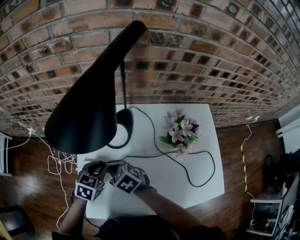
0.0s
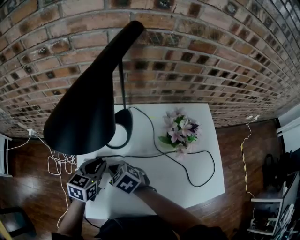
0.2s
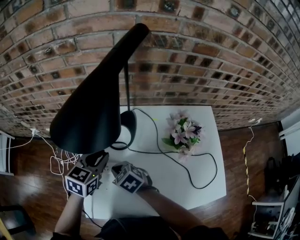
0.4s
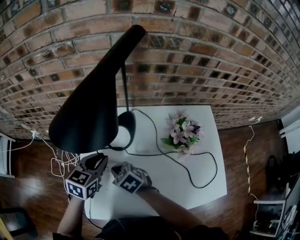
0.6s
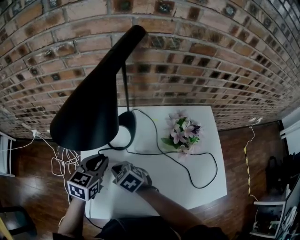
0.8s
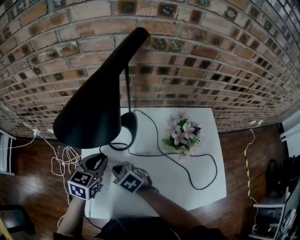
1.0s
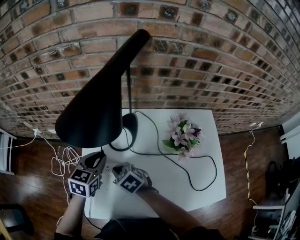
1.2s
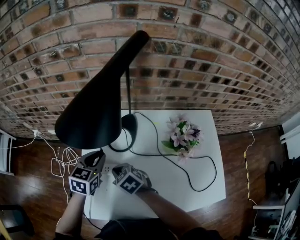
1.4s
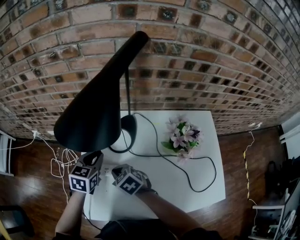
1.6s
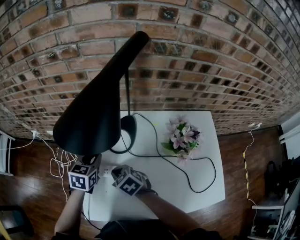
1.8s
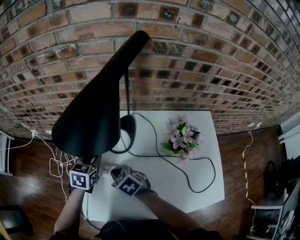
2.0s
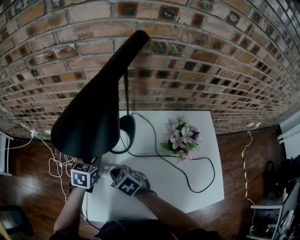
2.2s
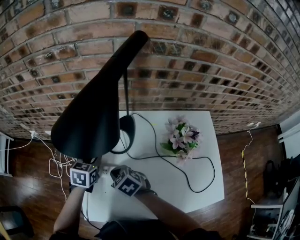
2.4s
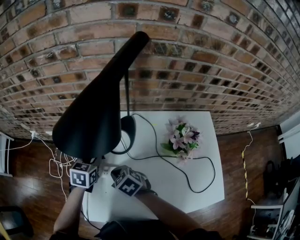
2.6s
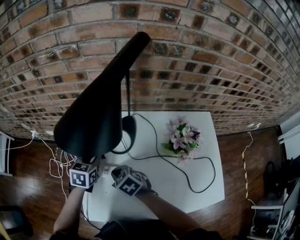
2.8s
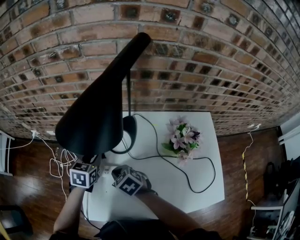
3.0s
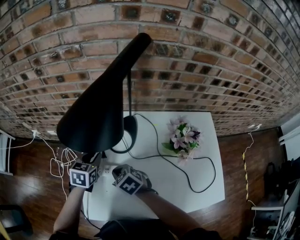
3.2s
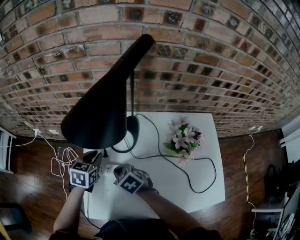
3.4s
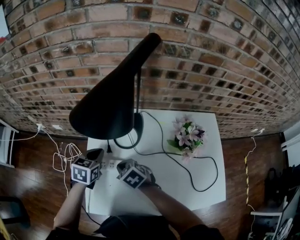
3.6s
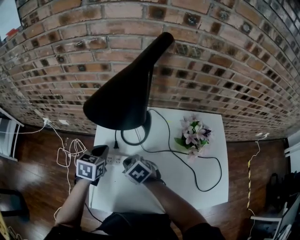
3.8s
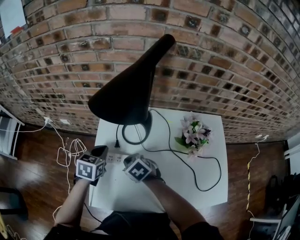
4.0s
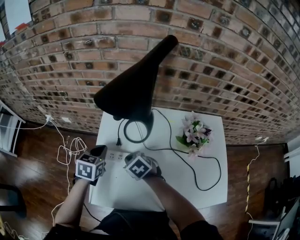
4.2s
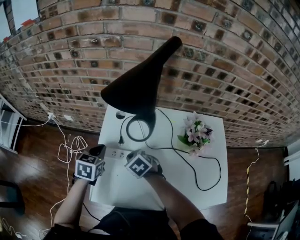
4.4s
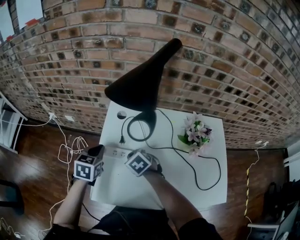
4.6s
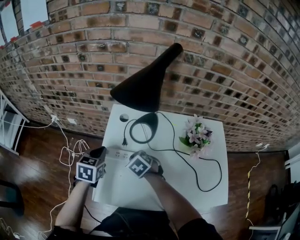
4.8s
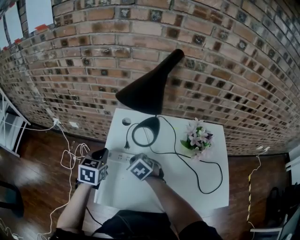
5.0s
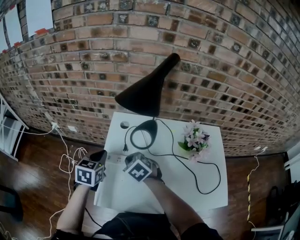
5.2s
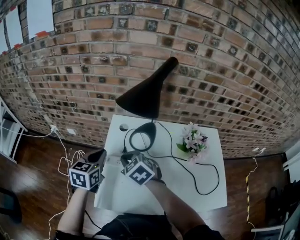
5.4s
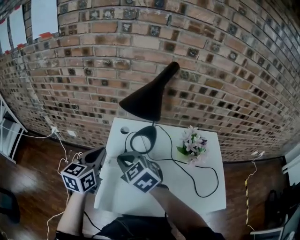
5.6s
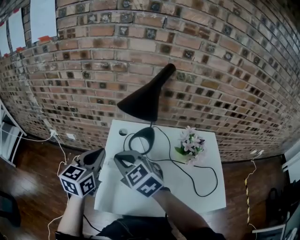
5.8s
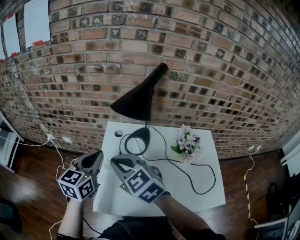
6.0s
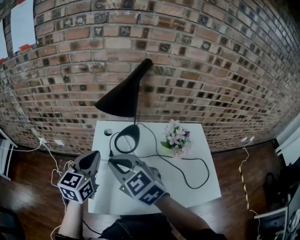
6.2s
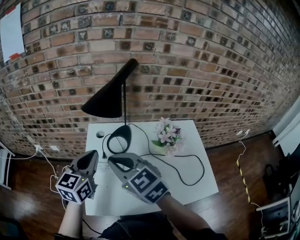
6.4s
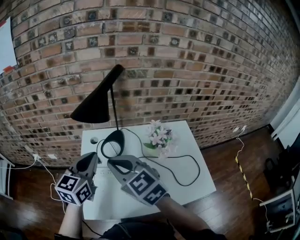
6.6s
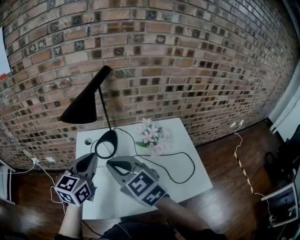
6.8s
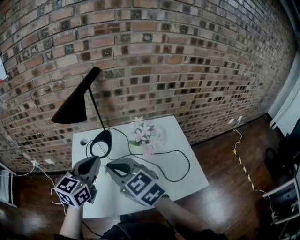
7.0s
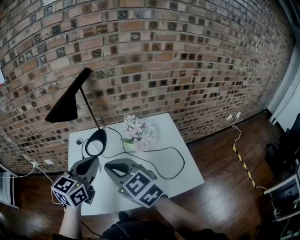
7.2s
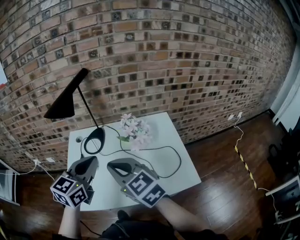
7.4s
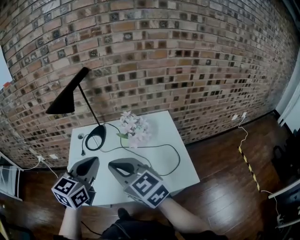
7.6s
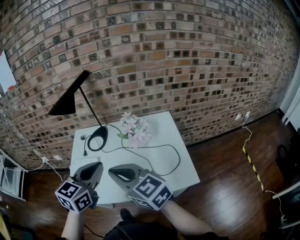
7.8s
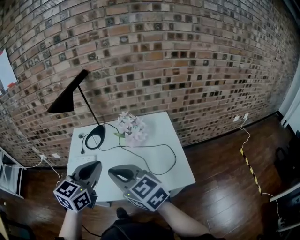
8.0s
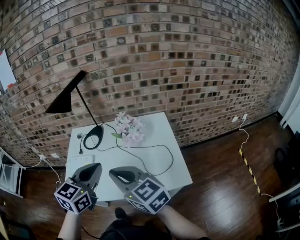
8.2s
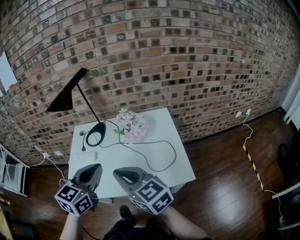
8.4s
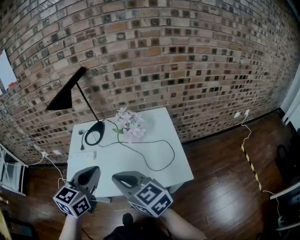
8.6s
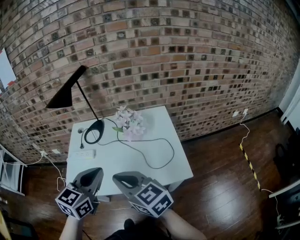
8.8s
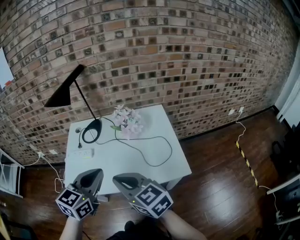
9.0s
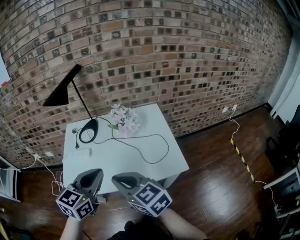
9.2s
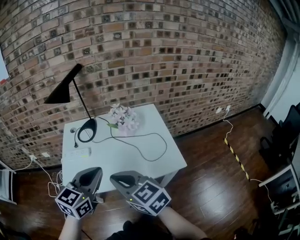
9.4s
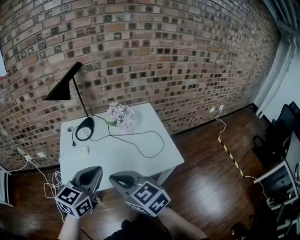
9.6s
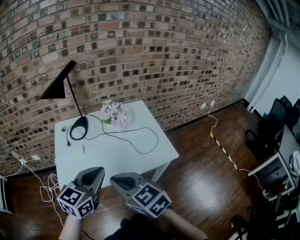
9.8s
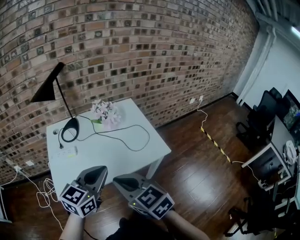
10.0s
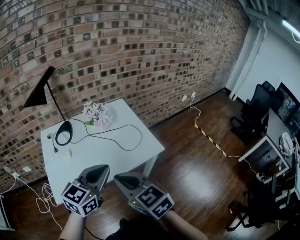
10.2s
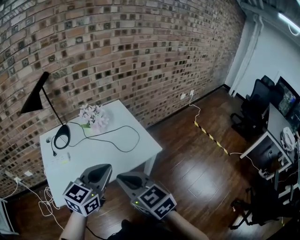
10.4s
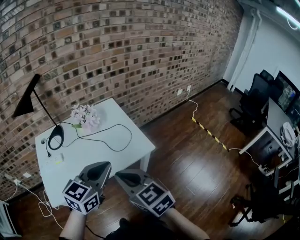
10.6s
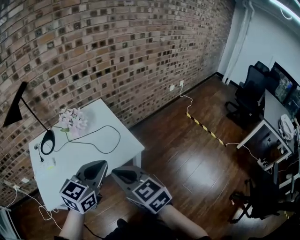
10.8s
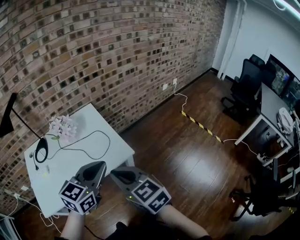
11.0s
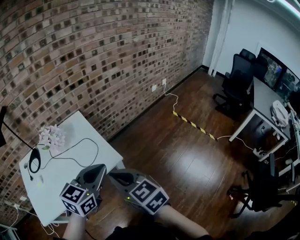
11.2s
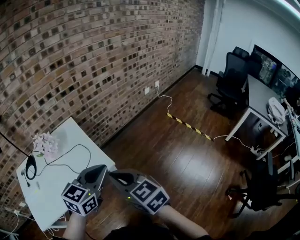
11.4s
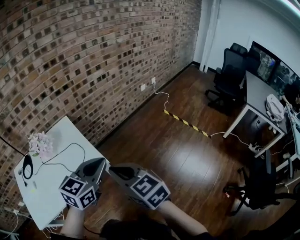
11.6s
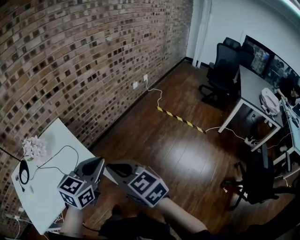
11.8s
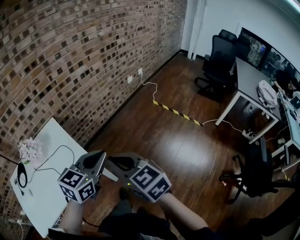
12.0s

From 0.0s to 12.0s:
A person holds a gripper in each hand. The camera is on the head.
From 0.0s to 1.6s: The left gripper travels forward by roughly 5 cm.
From 1.6s to 3.0s: The grippers make only small movements.
From 3.0s to 4.4s: The left gripper heads to the left, covering some 5 cm, and closes up.
From 4.4s to 6.0s: The grippers both shift upward by some 20 cm. The left gripper turns by approximately 30 degrees. The right gripper points its fingers about 30 degrees further upward.
From 6.0s to 7.6s: Both grippers move to the right and backward, roughly 30 cm. The right gripper swivels roughly 20 degrees.
From 7.6s to 9.0s: Both grippers travel together backward, roughly 10 cm.
From 9.0s to 10.4s: The right gripper shifts by some 10 cm, and swivels approximately 30 degrees; the left gripper shifts by approximately 10 cm, and swivels some 30 degrees.
From 10.4s to 12.0s: Both grippers move to the right, roughly 40 cm. The left gripper turns by about 20 degrees.

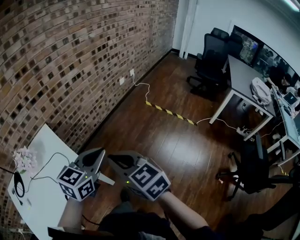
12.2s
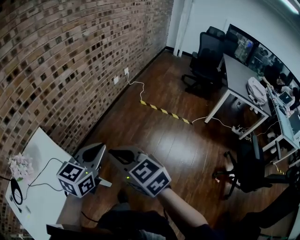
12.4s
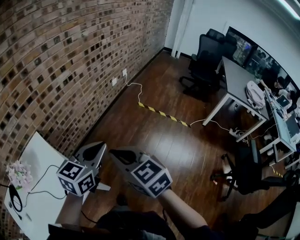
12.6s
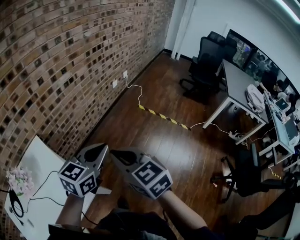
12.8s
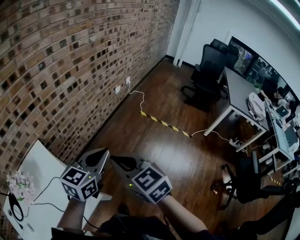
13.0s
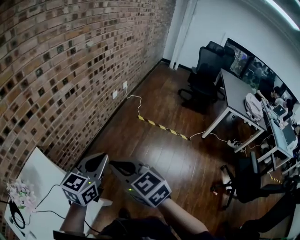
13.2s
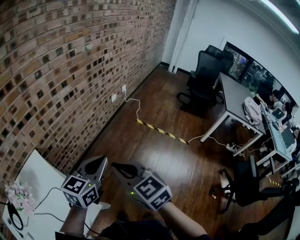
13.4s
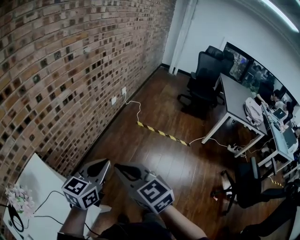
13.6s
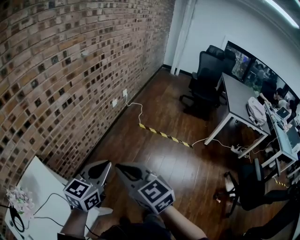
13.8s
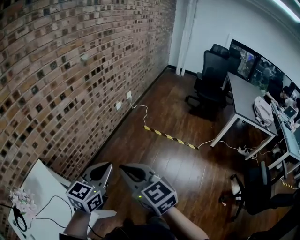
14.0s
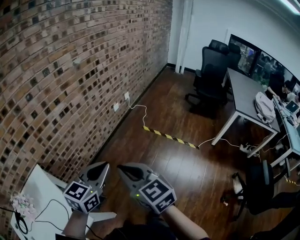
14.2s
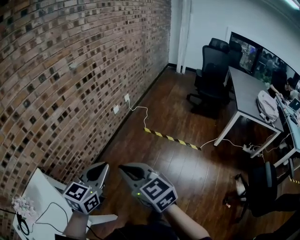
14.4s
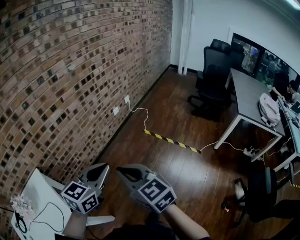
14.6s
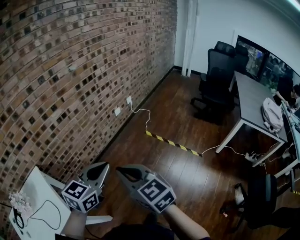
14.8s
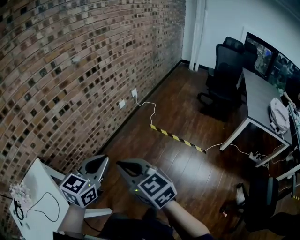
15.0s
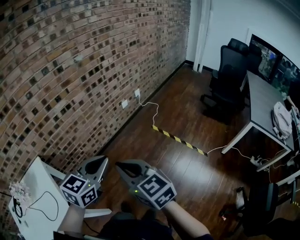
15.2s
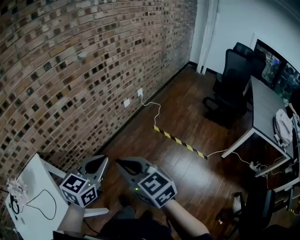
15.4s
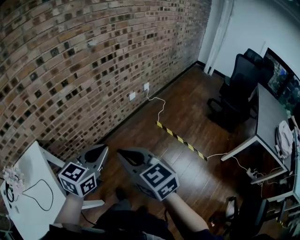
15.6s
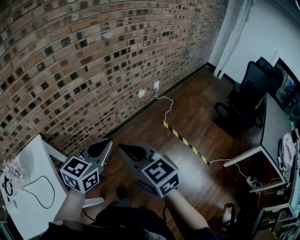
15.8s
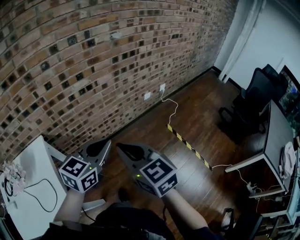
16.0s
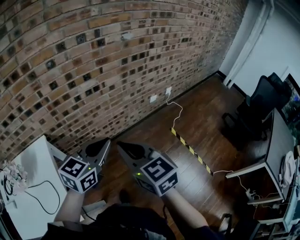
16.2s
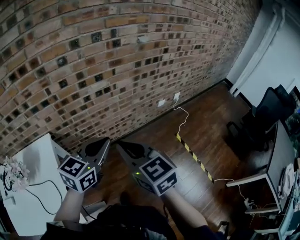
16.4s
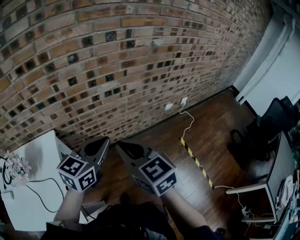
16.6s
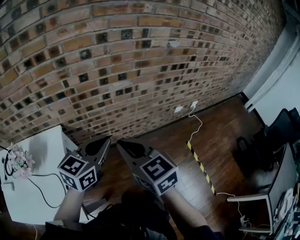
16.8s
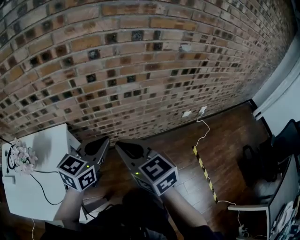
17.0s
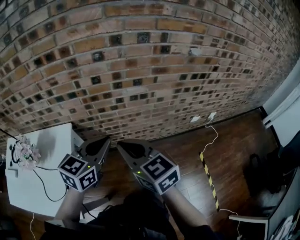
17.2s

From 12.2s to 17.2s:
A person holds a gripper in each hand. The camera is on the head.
From 12.2s to 13.8s: The grippers both shift forward by about 20 cm.
From 13.8s to 15.6s: The right gripper shifts some 20 cm to the right and forward, while the left gripper shifts about 15 cm forward and to the right.
From 15.6s to 17.2s: The right gripper shifts by roughly 35 cm, and changes its angle by roughly 30 degrees; the left gripper moves approximately 30 cm, and changes its angle by about 30 degrees.

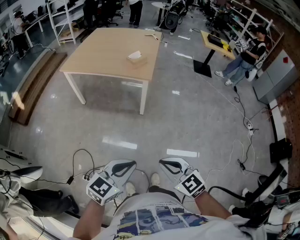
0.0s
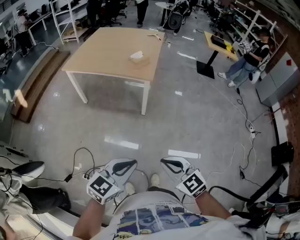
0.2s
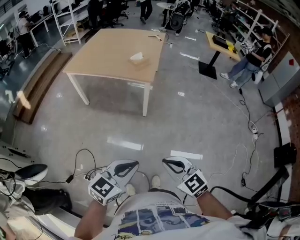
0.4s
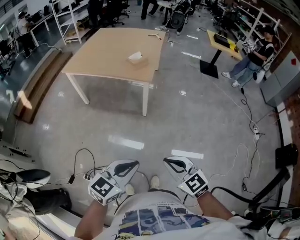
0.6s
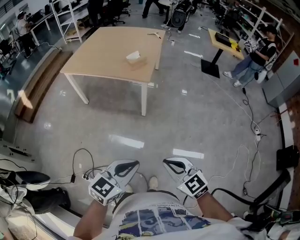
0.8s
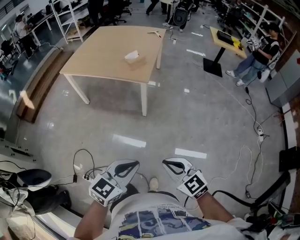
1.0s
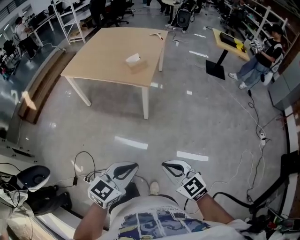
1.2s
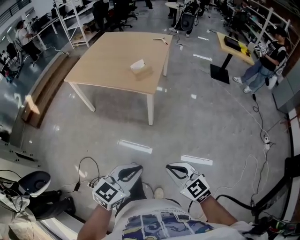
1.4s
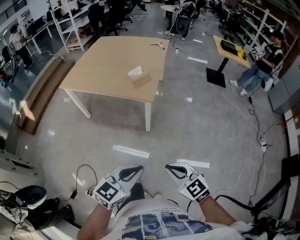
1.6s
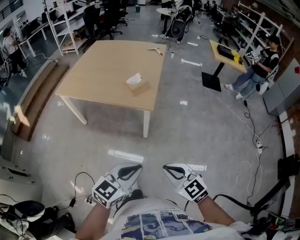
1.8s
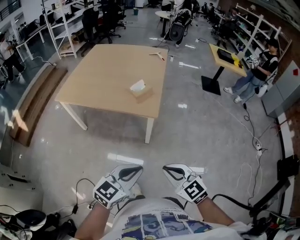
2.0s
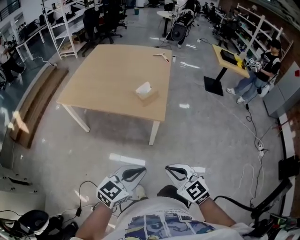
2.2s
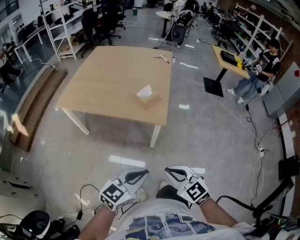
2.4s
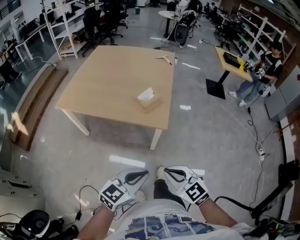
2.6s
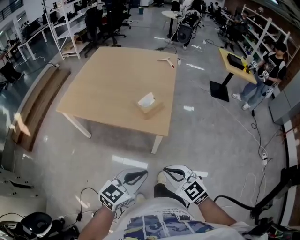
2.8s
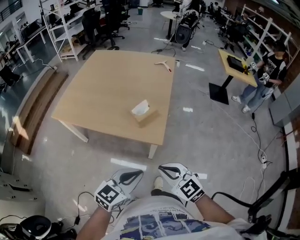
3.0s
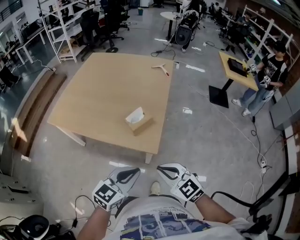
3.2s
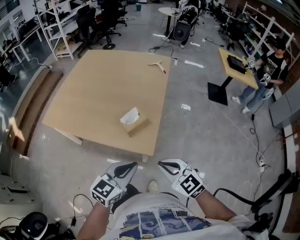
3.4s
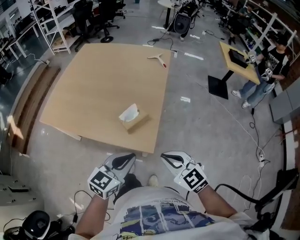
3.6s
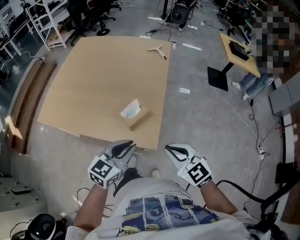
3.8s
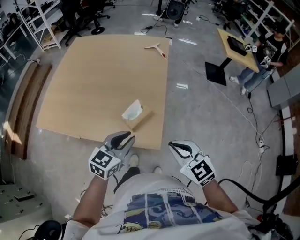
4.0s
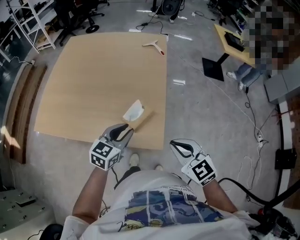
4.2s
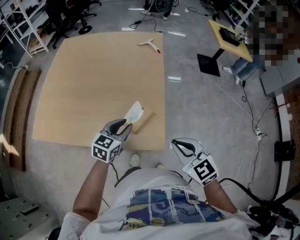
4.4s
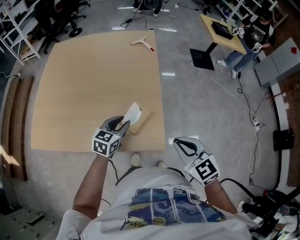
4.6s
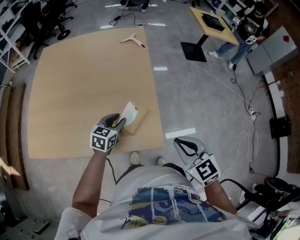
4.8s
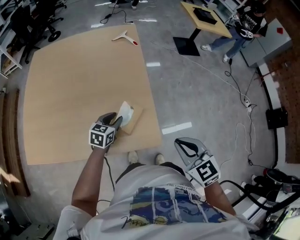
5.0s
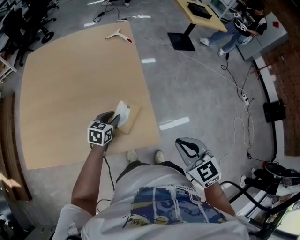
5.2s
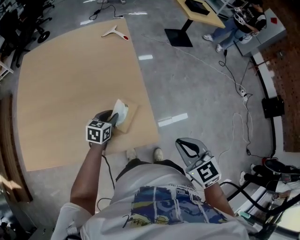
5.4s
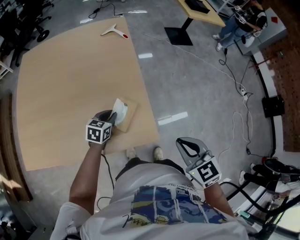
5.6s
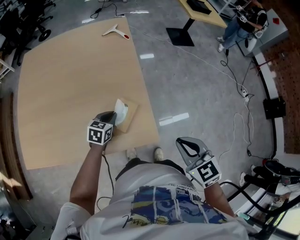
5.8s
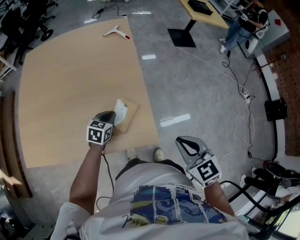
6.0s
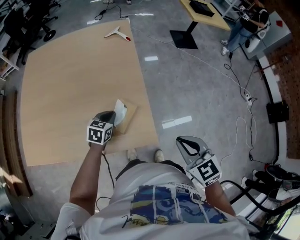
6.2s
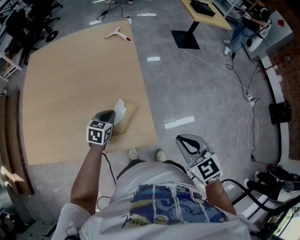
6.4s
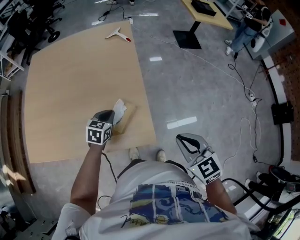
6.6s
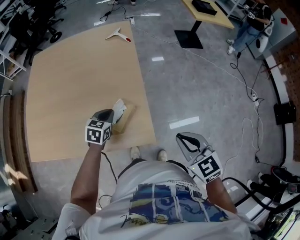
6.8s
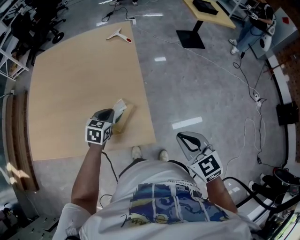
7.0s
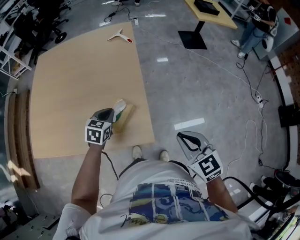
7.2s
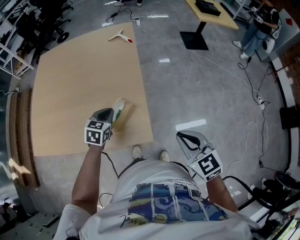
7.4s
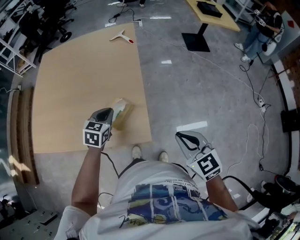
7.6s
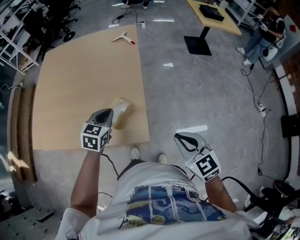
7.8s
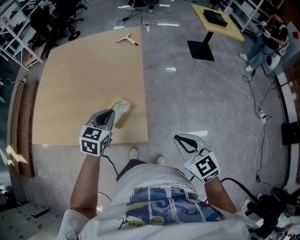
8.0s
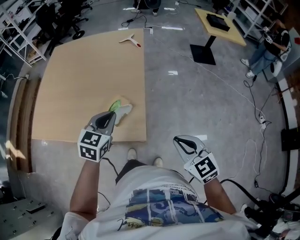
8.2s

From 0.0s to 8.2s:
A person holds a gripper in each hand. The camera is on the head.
From 0.0s to 1.6s: The grippers both shift forward and to the right by approximately 20 cm.
From 1.6s to 3.2s: Both grippers travel together forward, approximately 35 cm.
From 3.2s to 5.0s: The right gripper shifts by approximately 15 cm, and turns by some 40 degrees. The left gripper shifts by about 40 cm, swivels roughly 20 degrees, and opens its fingers.
From 5.0s to 6.6s: The left gripper closes up, while the right gripper is displaced to the right by about 5 cm.
From 6.6s to 8.2s: The left gripper heads upward, backward and to the right, covering approximately 20 cm; the right gripper moves to the right, approximately 5 cm.
